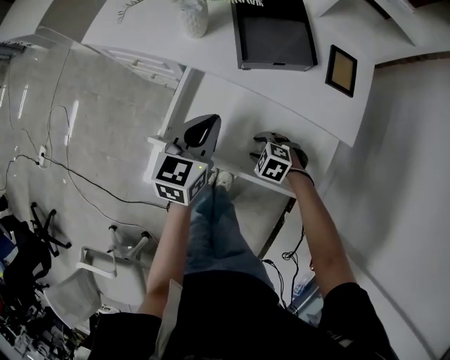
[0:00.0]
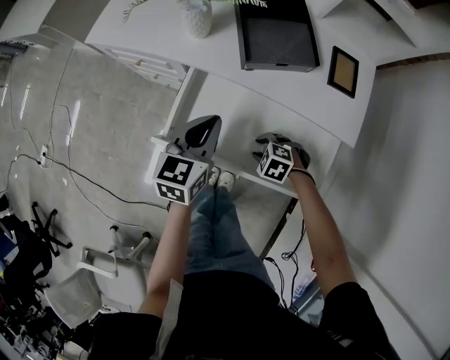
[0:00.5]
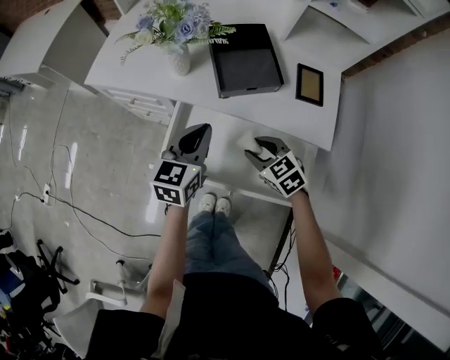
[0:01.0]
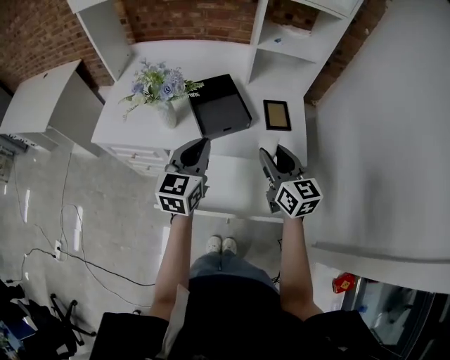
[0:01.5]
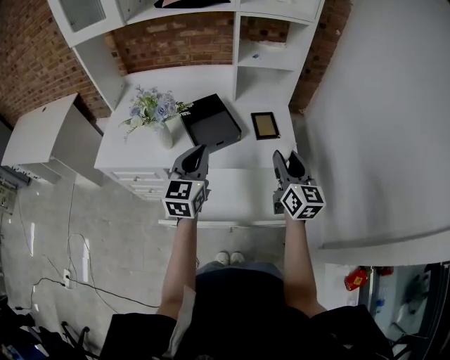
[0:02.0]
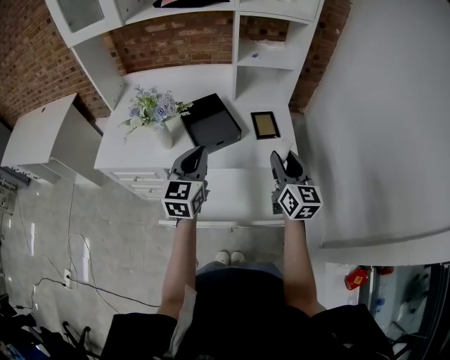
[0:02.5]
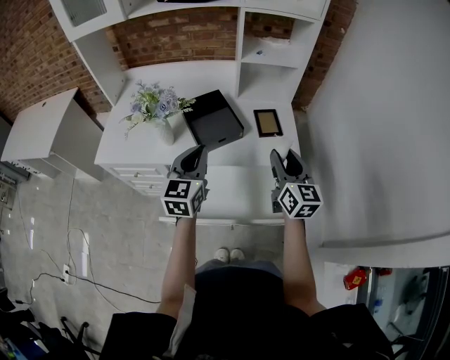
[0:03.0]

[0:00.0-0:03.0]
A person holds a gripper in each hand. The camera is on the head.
0:00.0 to 0:01.5: The right gripper goes about 35 cm upward, and tilts its fingers roughly 70 degrees upward. The left gripper moves upward, some 15 cm.
0:01.5 to 0:03.0: The right gripper heads to the right, covering about 5 cm.

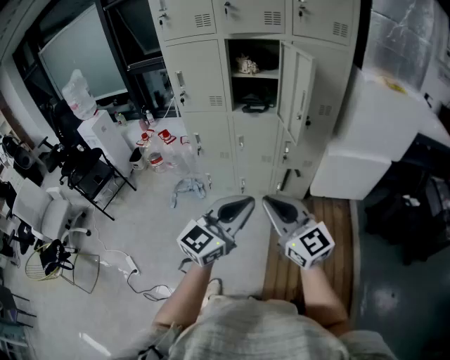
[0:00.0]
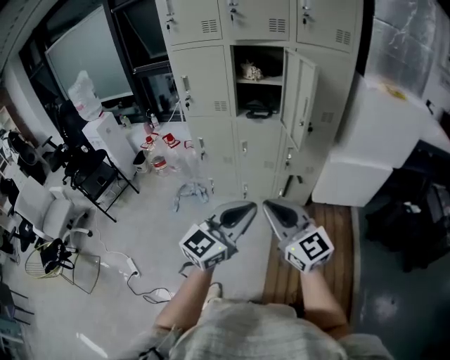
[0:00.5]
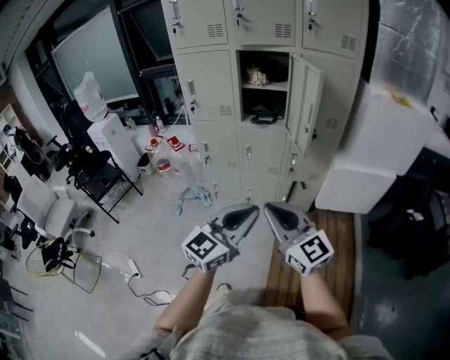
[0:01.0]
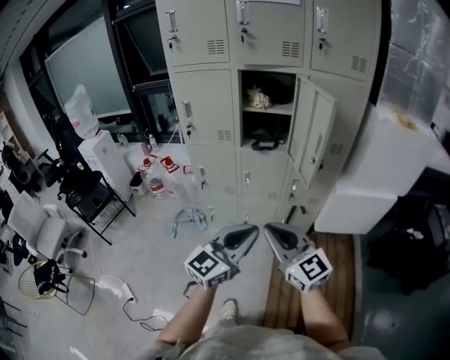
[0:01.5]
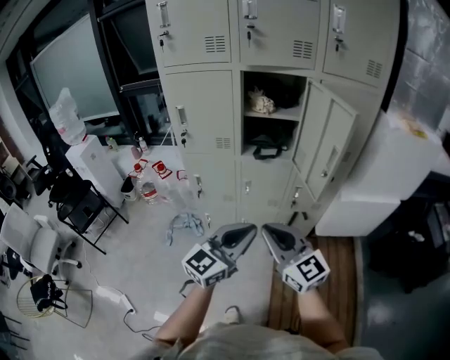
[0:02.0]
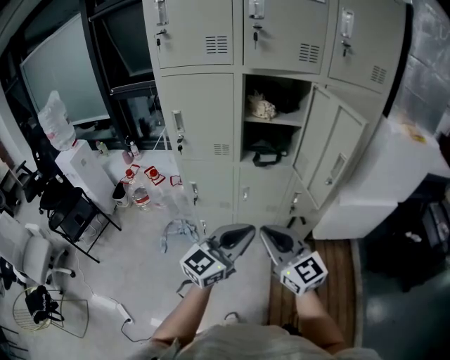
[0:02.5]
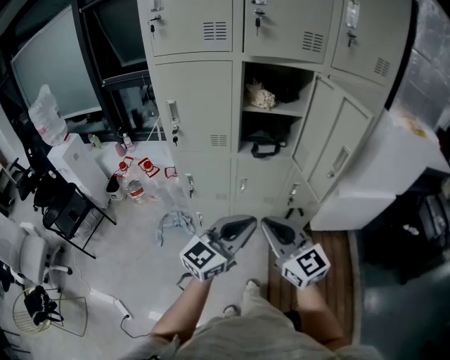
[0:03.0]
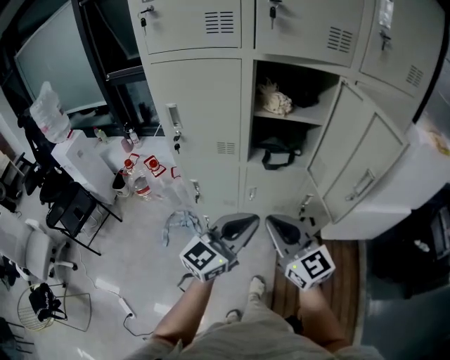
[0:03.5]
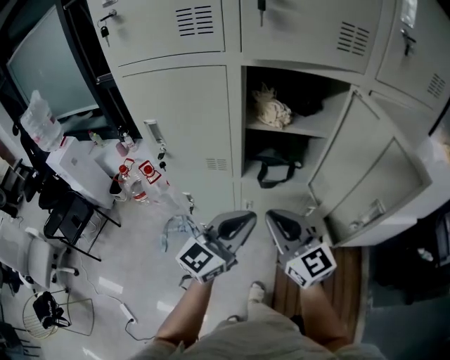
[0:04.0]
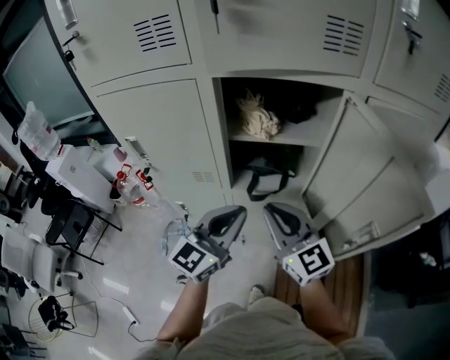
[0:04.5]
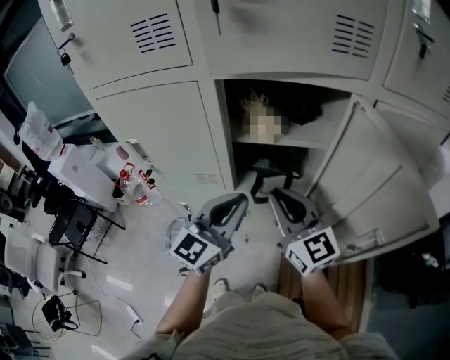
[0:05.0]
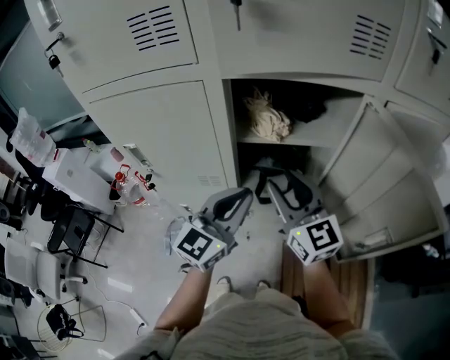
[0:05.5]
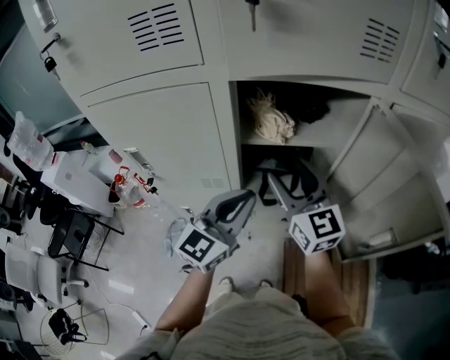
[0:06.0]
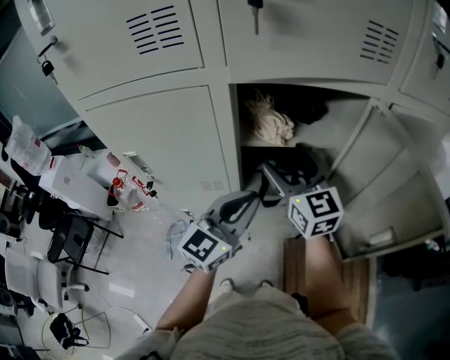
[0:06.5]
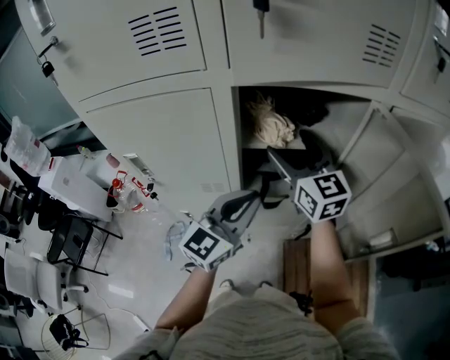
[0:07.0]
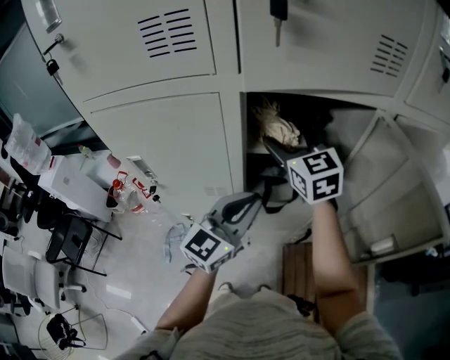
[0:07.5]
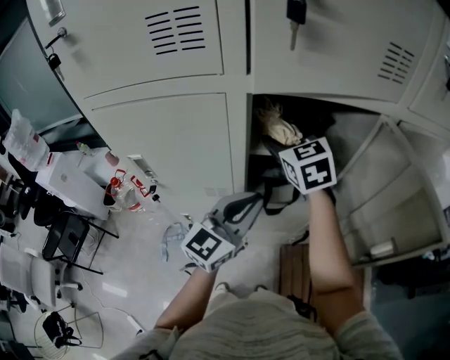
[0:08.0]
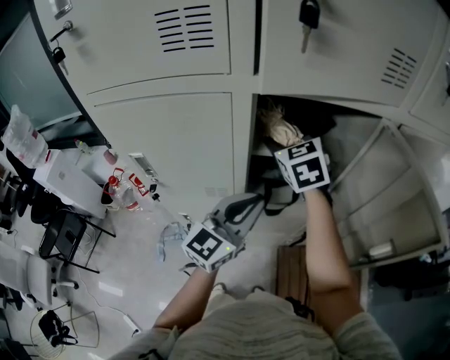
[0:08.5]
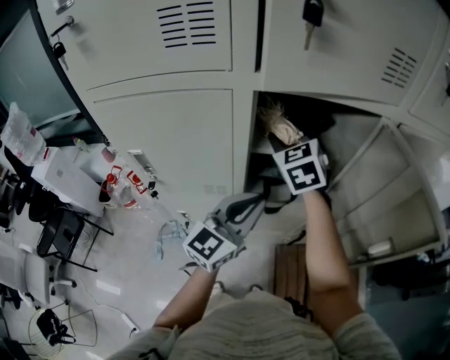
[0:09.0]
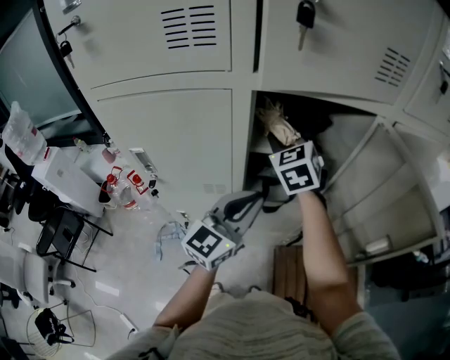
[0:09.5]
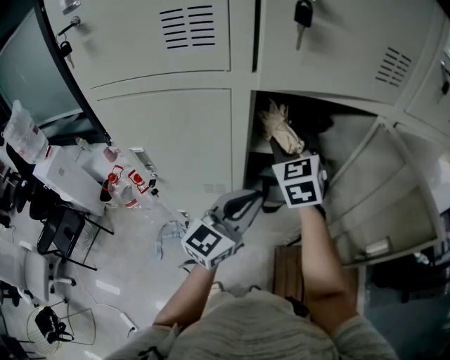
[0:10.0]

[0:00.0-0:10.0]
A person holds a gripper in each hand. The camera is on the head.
0:00.0 to 0:02.0: The left gripper travels forward by approximately 20 cm; the right gripper heads forward and to the left, covering roughly 20 cm.
0:02.0 to 0:04.0: Both grippers travel together forward, approximately 25 cm.
0:04.0 to 0:06.0: The grippers both shift forward by roughly 15 cm. The right gripper opens up.
0:06.0 to 0:08.0: The right gripper shifts about 15 cm forward, and changes its angle by about 30 degrees.
0:08.0 to 0:10.0: The right gripper closes its fingers.

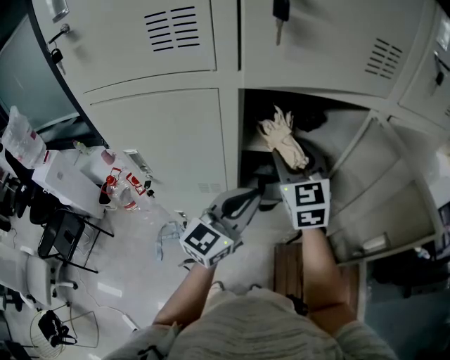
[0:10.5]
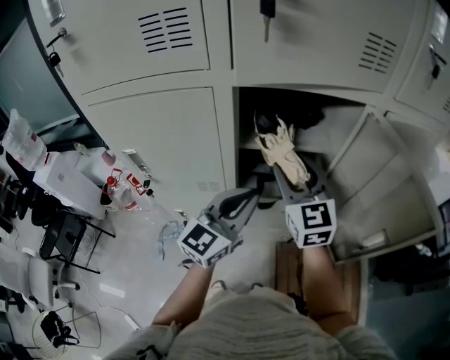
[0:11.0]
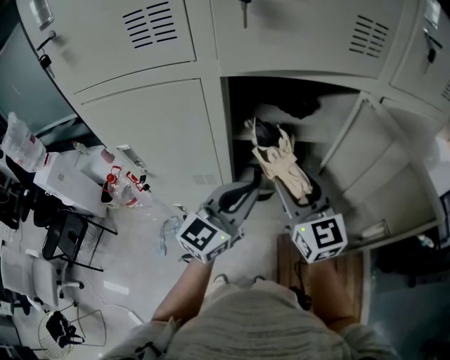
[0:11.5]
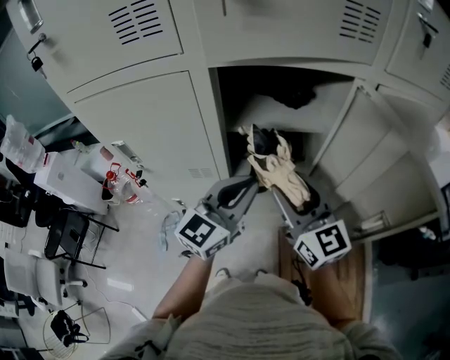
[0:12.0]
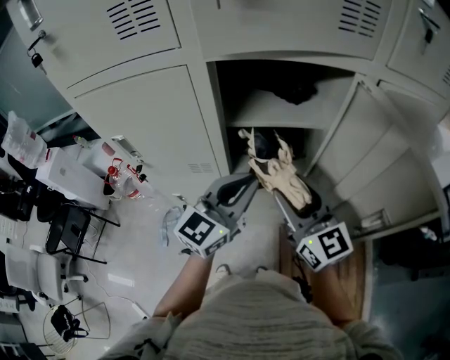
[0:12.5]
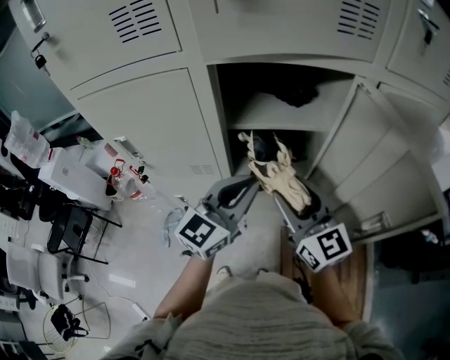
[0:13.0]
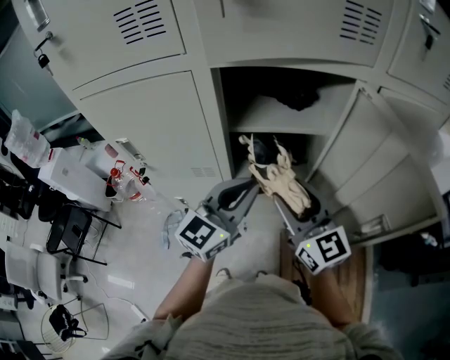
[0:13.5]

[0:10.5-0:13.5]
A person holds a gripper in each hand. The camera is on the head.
0:10.5 to 0:12.0: The right gripper heads backward, covering about 10 cm, and rotates some 20 degrees.
0:12.0 to 0:13.5: The grippers make only small movements.

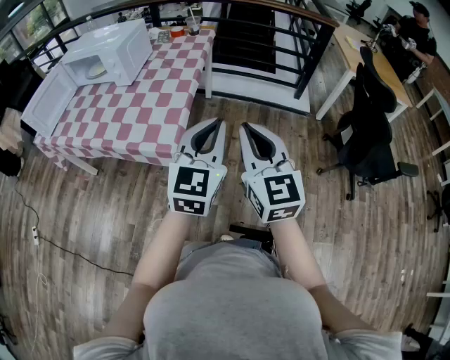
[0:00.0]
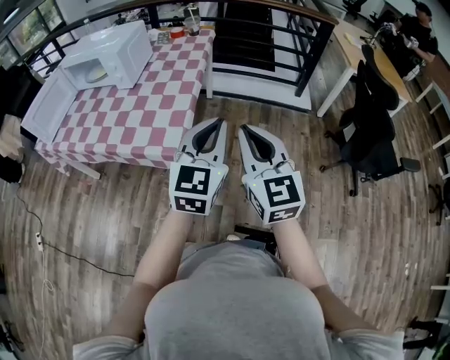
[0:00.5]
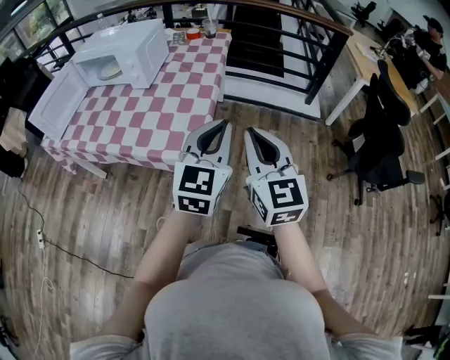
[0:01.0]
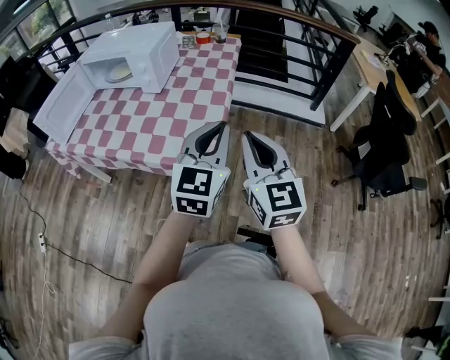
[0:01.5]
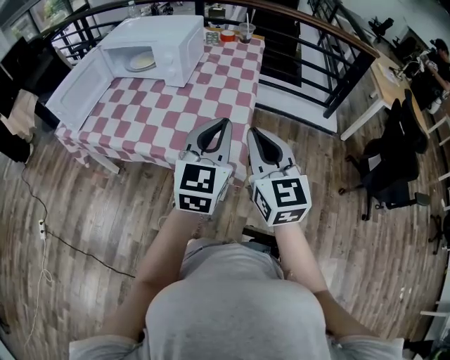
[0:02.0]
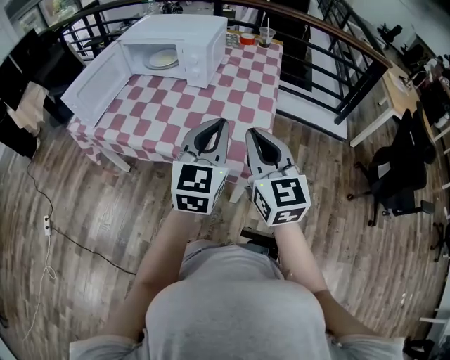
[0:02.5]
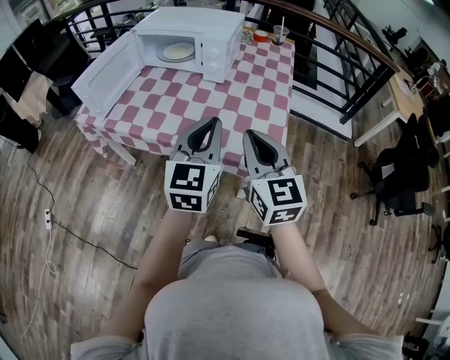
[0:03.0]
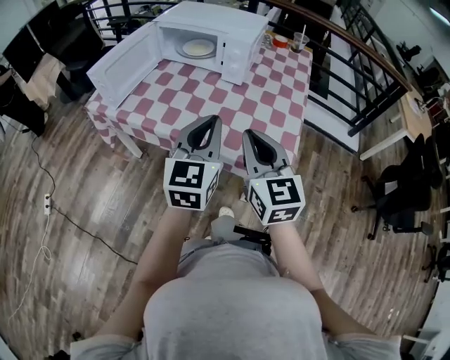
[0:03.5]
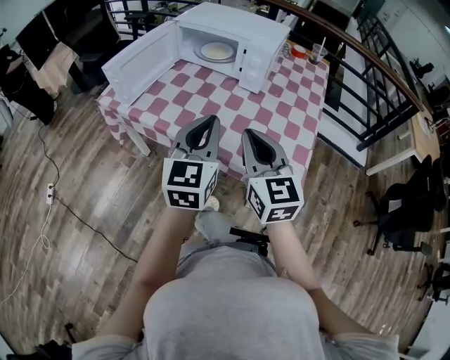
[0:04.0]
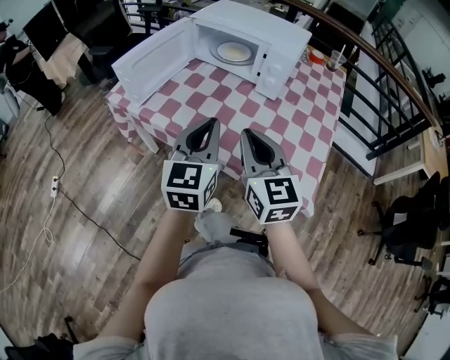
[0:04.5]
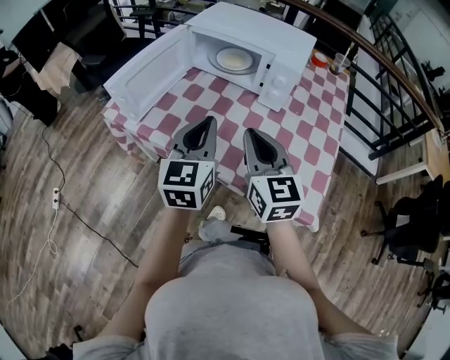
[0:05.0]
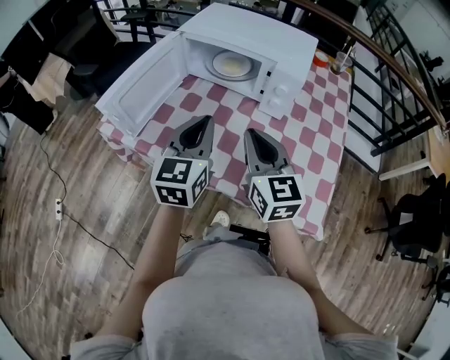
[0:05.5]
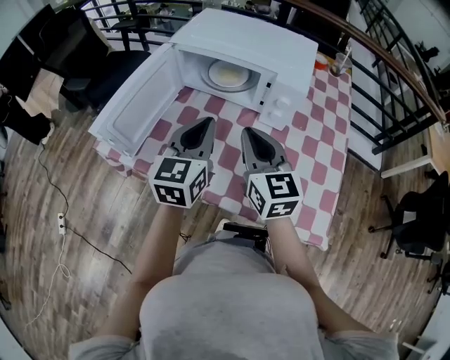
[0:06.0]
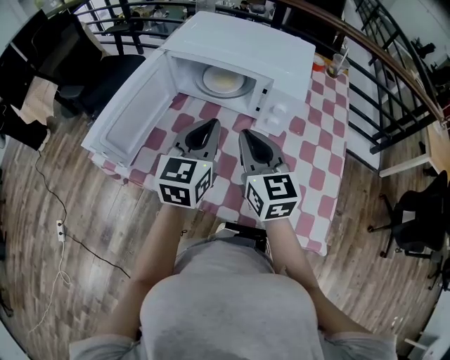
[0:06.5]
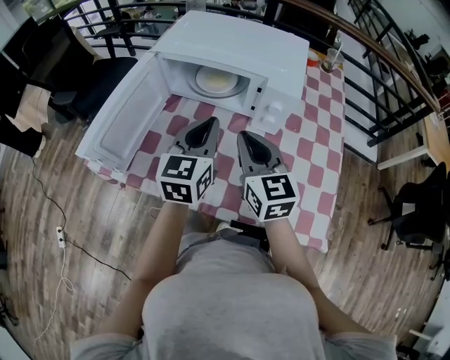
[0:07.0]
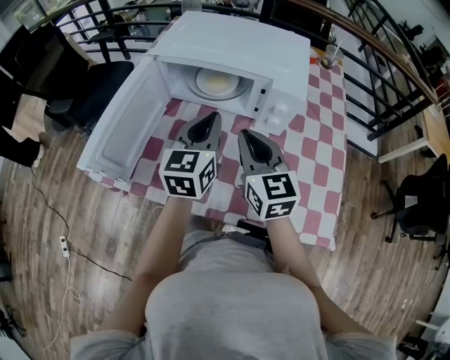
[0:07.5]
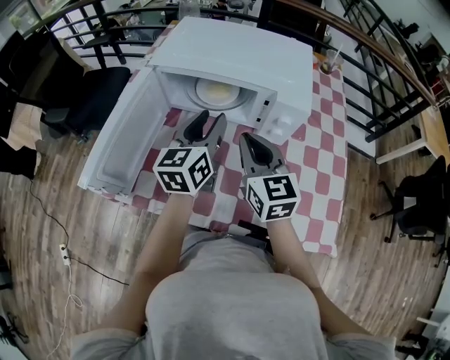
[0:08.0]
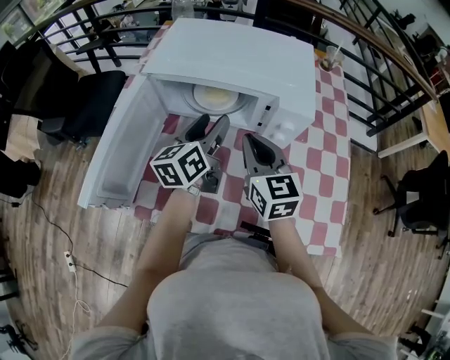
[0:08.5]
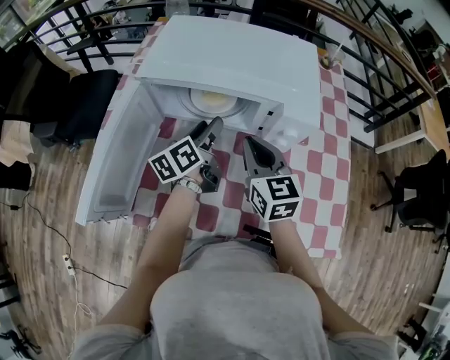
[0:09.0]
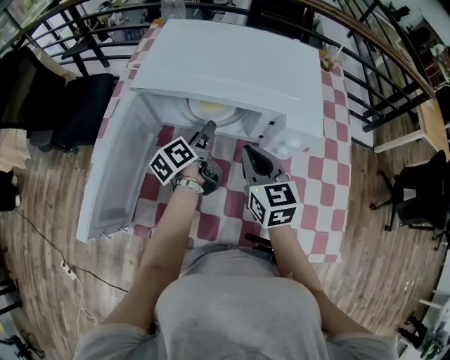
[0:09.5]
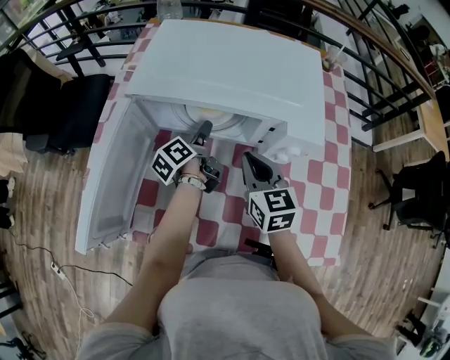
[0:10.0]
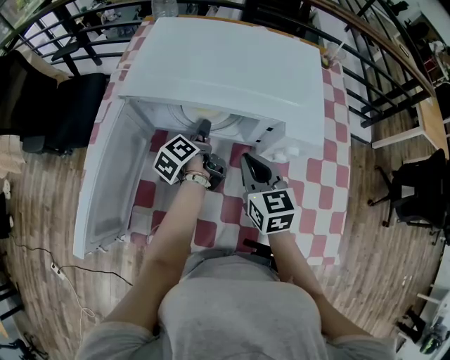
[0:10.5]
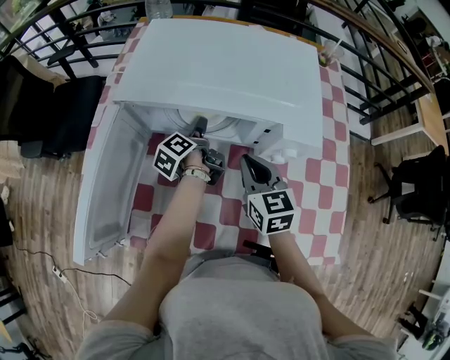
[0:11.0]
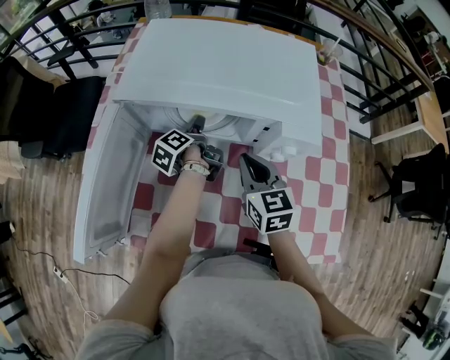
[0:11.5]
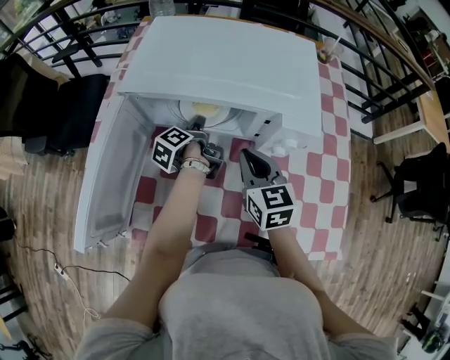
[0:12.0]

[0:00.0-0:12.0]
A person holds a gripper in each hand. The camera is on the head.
0:00.0 to 0:02.0: The grippers both shift to the left by about 25 cm.
0:02.0 to 0:04.0: The two grippers go about 25 cm to the left.
0:04.0 to 0:06.0: The grippers both shift forward by approximately 25 cm.
0:06.0 to 0:08.0: The two grippers go roughly 10 cm forward. The left gripper opens its fingers.
0:08.0 to 0:10.0: The right gripper is displaced downward and forward by roughly 10 cm; the left gripper is displaced downward and forward by approximately 20 cm, rotates around the line of its fingers by some 50 degrees, counterclockwise from behind, and opens.
0:10.0 to 0:12.0: The grippers stay close to where they were, moving slightly.
